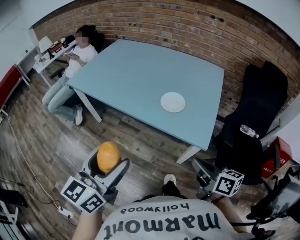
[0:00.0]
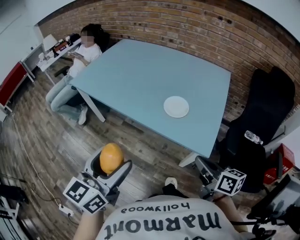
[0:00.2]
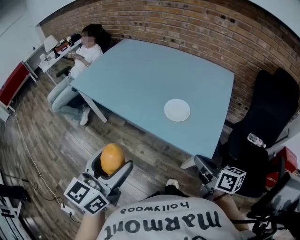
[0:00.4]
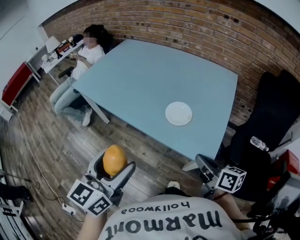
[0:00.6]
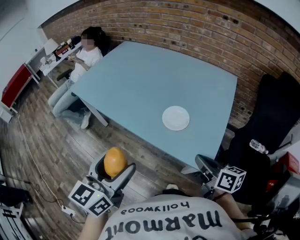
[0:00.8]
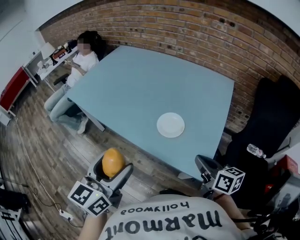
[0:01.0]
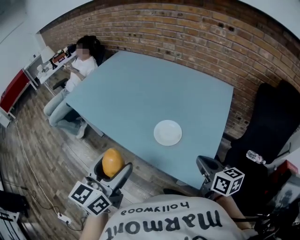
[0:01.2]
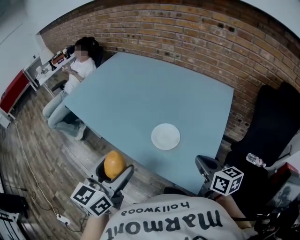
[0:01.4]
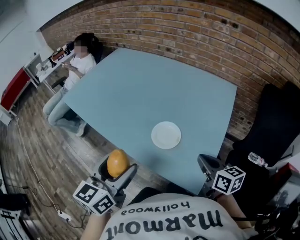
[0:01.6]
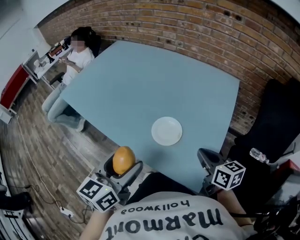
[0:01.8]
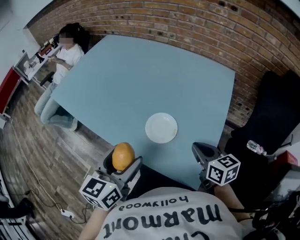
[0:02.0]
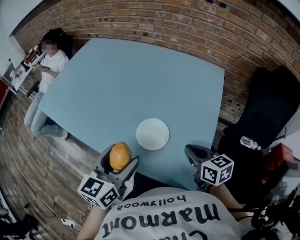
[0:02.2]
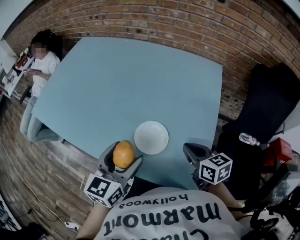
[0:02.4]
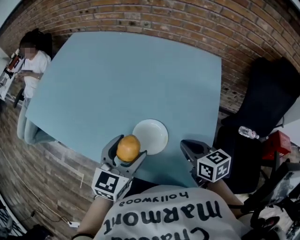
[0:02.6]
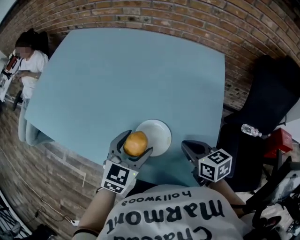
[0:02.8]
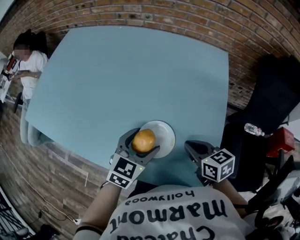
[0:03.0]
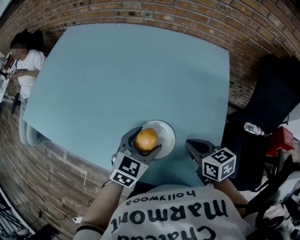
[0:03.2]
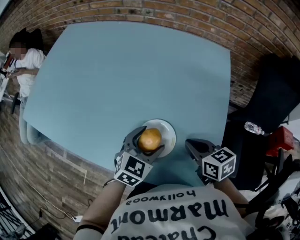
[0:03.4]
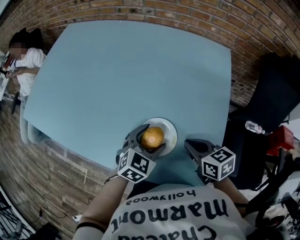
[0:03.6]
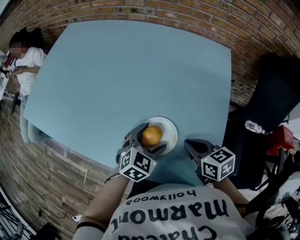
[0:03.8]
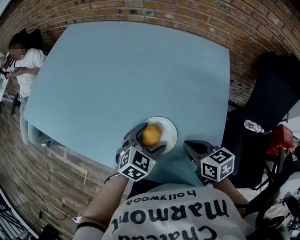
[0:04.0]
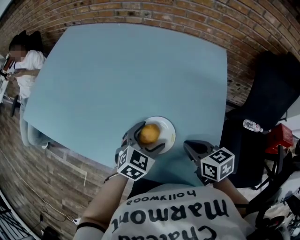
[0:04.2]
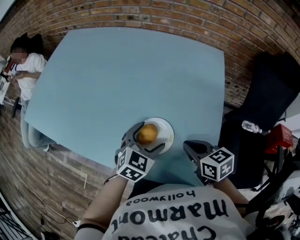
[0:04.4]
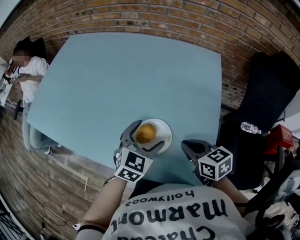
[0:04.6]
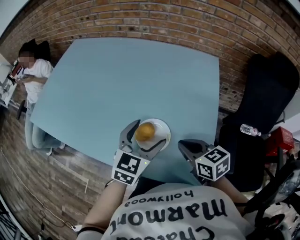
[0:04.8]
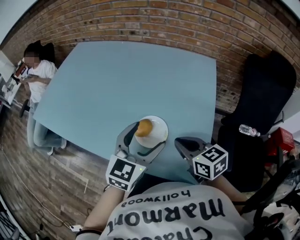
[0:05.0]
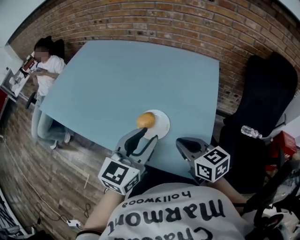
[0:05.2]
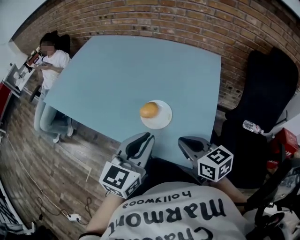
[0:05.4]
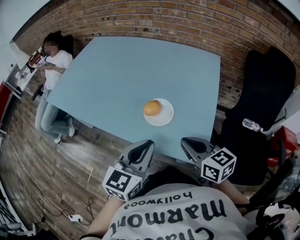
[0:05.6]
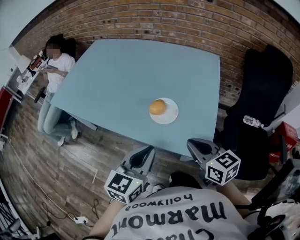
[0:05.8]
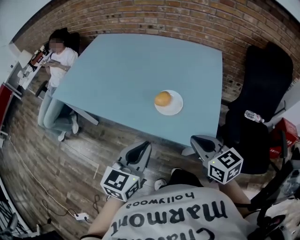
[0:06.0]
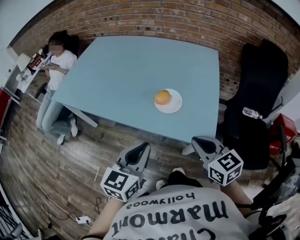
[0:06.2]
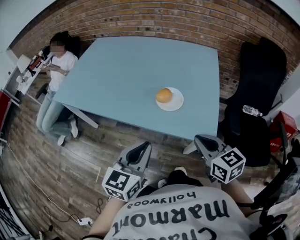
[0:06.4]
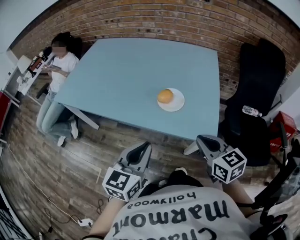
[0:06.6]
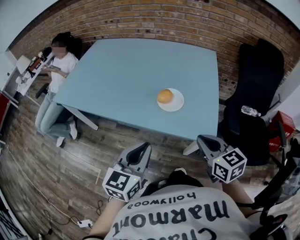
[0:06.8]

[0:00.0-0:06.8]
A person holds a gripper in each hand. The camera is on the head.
0:00.0 to 0:01.4: The two grippers go some 25 cm forward and to the right.
0:01.4 to 0:02.8: The right gripper shifts roughly 15 cm forward and downward; the left gripper moves forward, downward and to the right, approximately 25 cm, and swivels some 40 degrees.
0:02.8 to 0:04.0: The left gripper travels downward by approximately 10 cm.
0:04.0 to 0:05.4: The right gripper heads backward and upward, covering some 15 cm; the left gripper travels upward and backward by some 25 cm, swivels about 40 degrees, and closes up.
0:05.4 to 0:06.8: The left gripper moves backward and to the left, roughly 20 cm. Meanwhile the right gripper heads backward, covering approximately 15 cm.

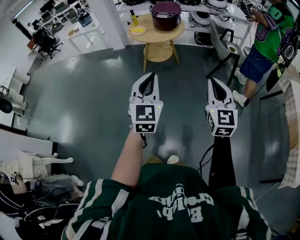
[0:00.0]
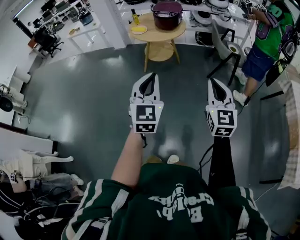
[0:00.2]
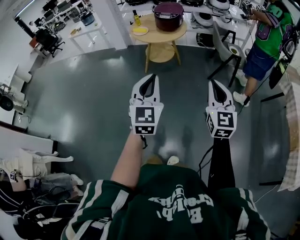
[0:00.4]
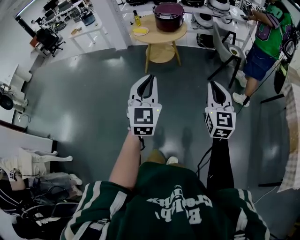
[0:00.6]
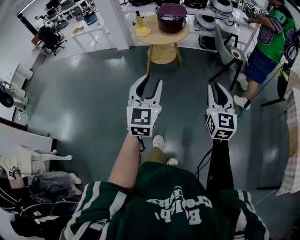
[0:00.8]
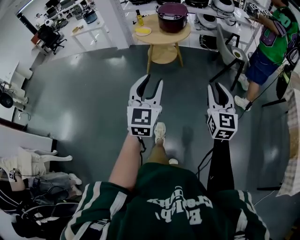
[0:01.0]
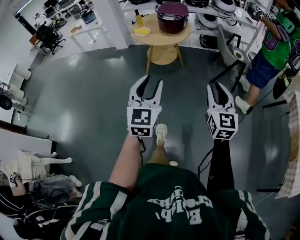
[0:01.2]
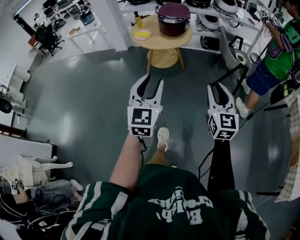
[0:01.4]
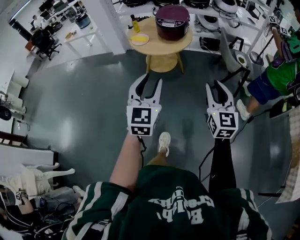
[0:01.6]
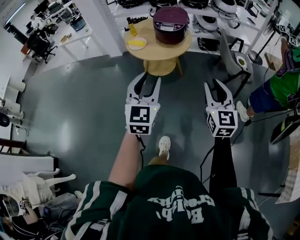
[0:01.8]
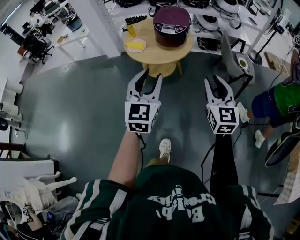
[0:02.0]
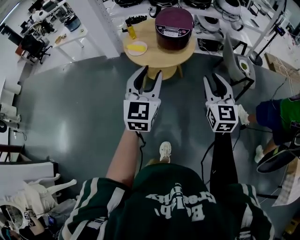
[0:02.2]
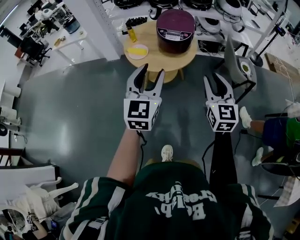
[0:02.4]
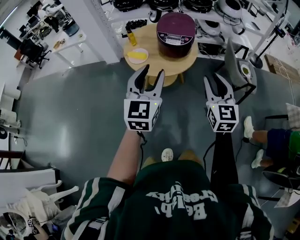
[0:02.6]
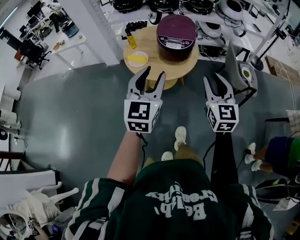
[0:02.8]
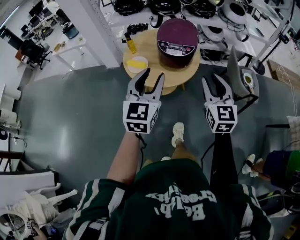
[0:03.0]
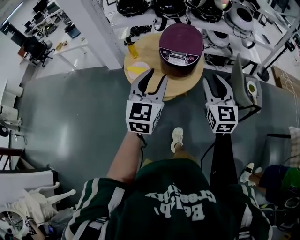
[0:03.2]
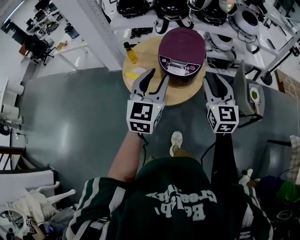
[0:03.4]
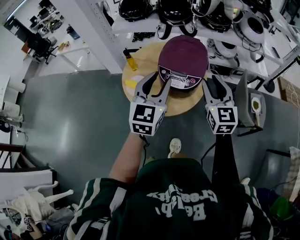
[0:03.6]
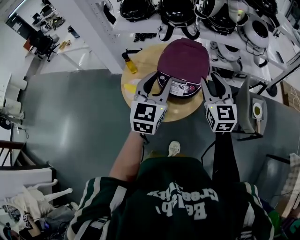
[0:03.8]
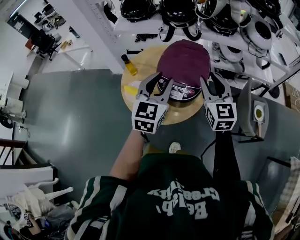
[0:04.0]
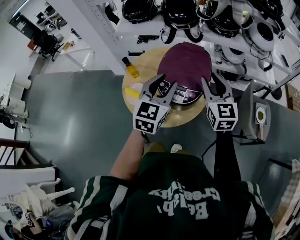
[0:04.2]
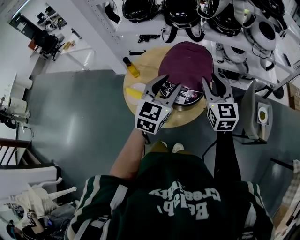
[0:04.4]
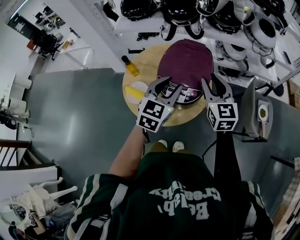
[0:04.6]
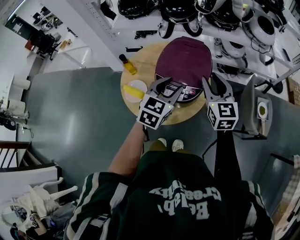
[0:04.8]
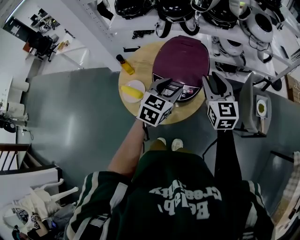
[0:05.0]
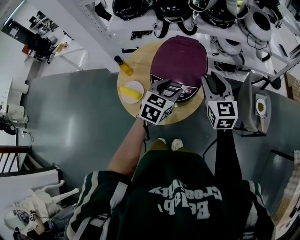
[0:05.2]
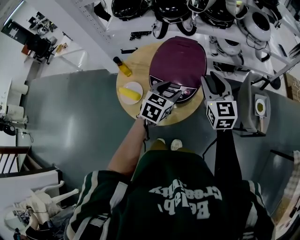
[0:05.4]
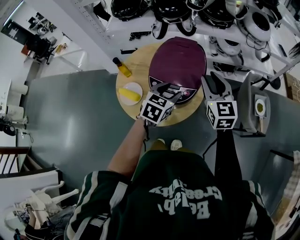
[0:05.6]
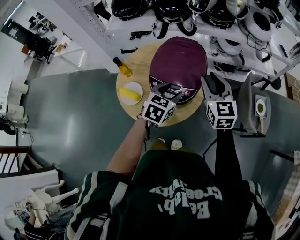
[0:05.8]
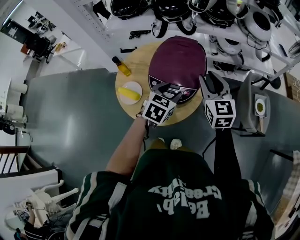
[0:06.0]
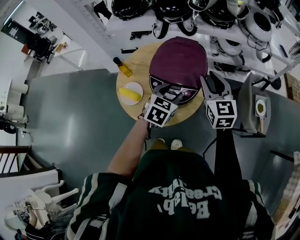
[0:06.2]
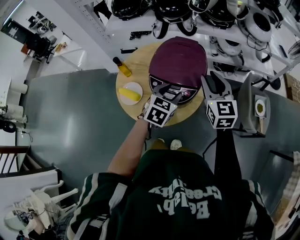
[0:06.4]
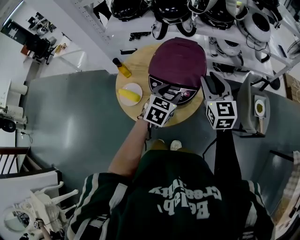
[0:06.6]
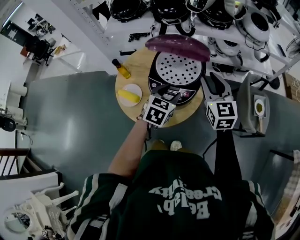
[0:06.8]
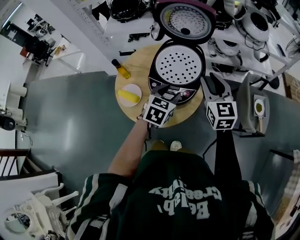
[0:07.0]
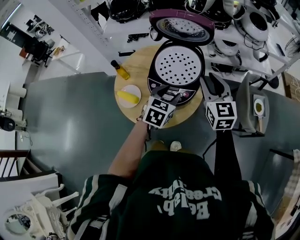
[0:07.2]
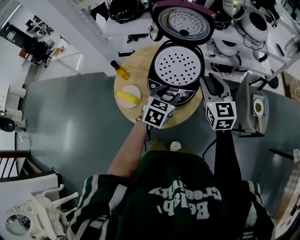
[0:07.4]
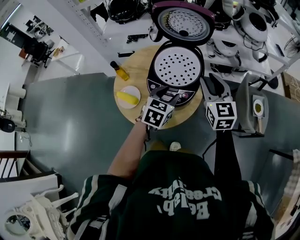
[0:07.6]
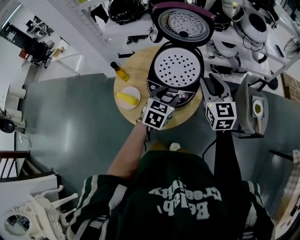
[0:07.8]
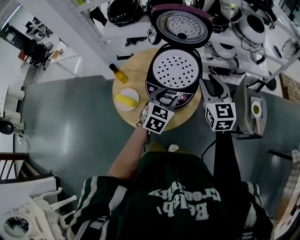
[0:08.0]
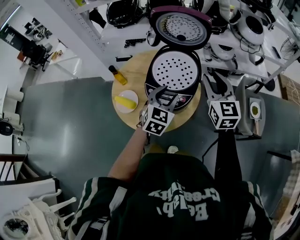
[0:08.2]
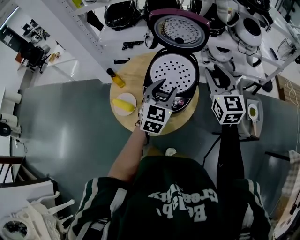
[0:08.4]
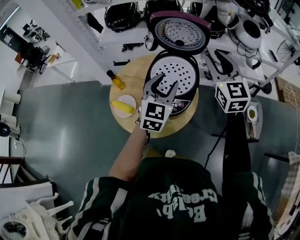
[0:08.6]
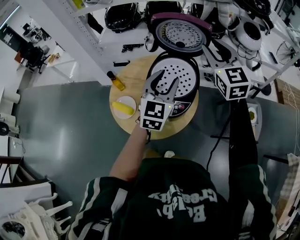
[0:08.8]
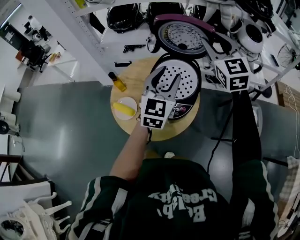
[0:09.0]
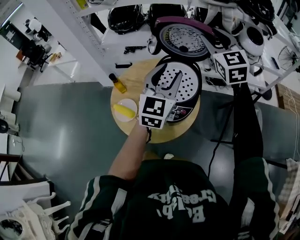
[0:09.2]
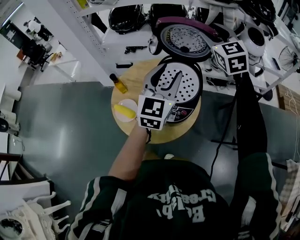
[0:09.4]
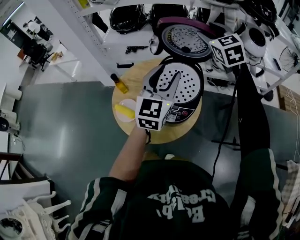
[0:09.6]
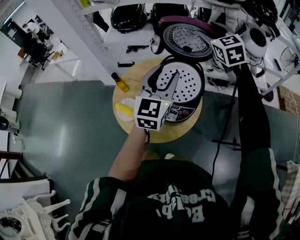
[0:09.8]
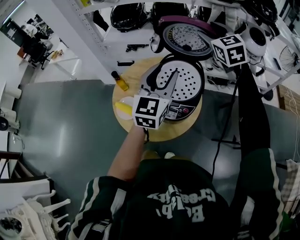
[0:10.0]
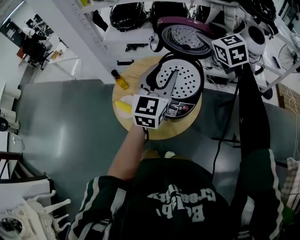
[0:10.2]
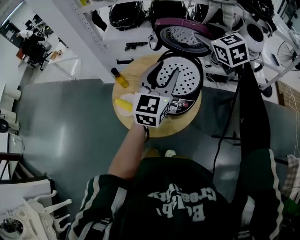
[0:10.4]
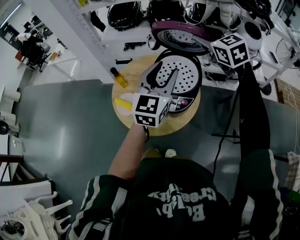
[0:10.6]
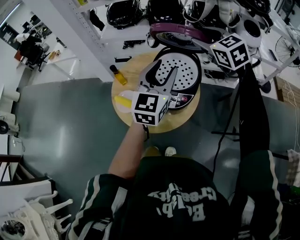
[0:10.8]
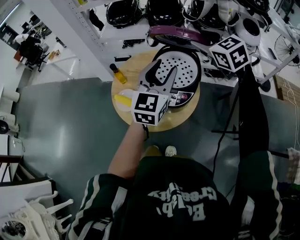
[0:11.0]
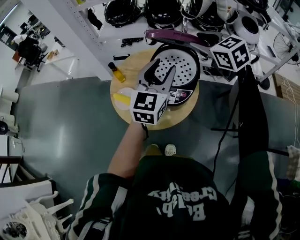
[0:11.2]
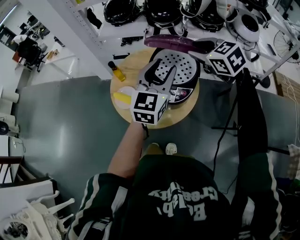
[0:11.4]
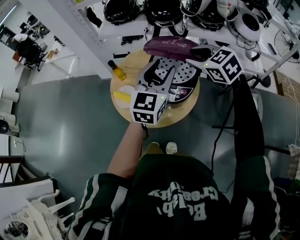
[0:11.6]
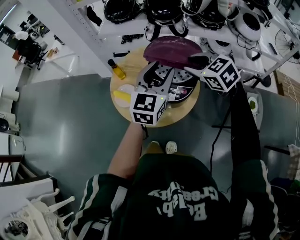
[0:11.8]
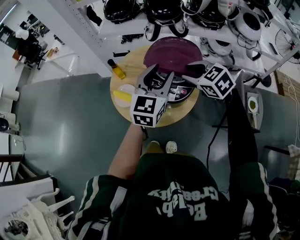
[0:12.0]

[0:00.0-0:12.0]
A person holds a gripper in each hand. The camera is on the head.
0:00.0 to 0:01.6: The grippers both shift forward by about 20 cm. The left gripper opens its fingers, while the right gripper opens its fingers.
0:01.6 to 0:03.0: The grippers both shift forward by about 30 cm.
0:03.0 to 0:04.4: The grippers both shift forward by approximately 30 cm.
0:04.4 to 0:06.0: The left gripper moves downward, approximately 10 cm, and swivels roughly 30 degrees.
0:06.0 to 0:07.6: Both grippers stay about where they are.
0:07.6 to 0:09.0: Both grippers move upward and forward, some 20 cm. The right gripper changes its angle by about 20 degrees; the left gripper tilts its fingers roughly 30 degrees upward.
0:09.0 to 0:10.4: The right gripper opens up.
0:10.4 to 0:12.0: The left gripper shifts by roughly 5 cm. The right gripper moves downward, backward and to the left, some 25 cm, turns by about 30 degrees, and closes up.

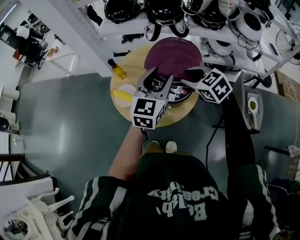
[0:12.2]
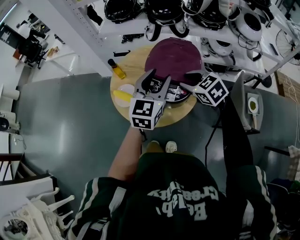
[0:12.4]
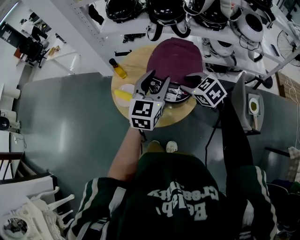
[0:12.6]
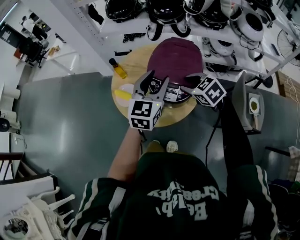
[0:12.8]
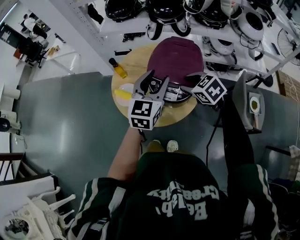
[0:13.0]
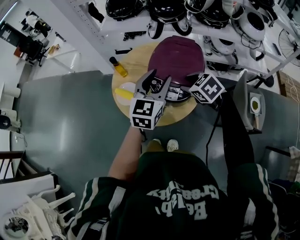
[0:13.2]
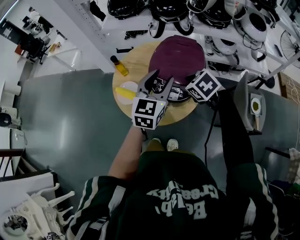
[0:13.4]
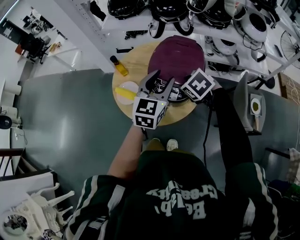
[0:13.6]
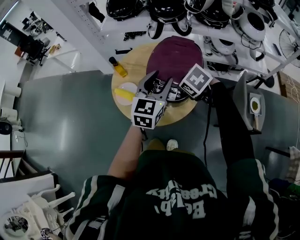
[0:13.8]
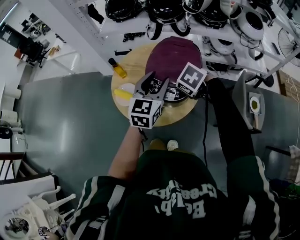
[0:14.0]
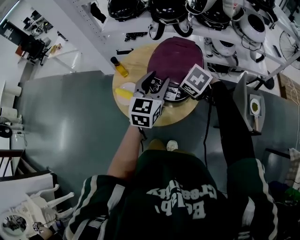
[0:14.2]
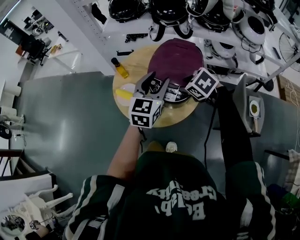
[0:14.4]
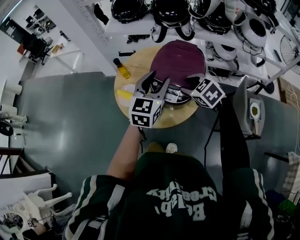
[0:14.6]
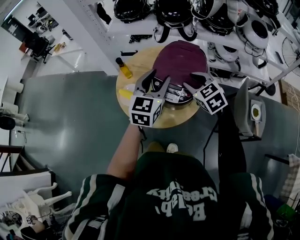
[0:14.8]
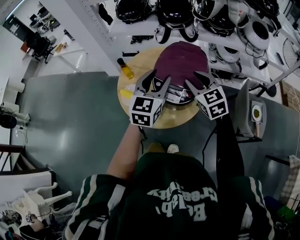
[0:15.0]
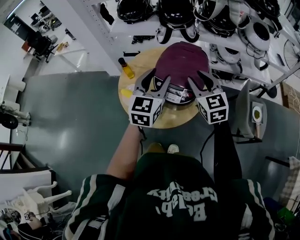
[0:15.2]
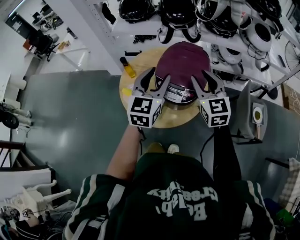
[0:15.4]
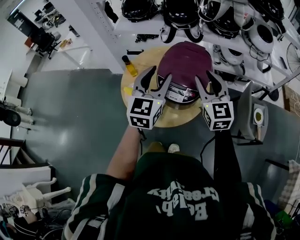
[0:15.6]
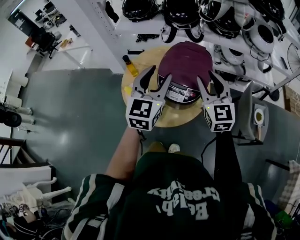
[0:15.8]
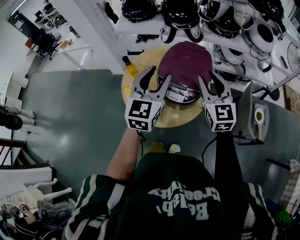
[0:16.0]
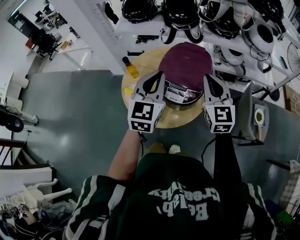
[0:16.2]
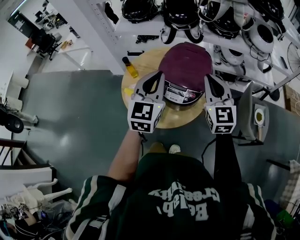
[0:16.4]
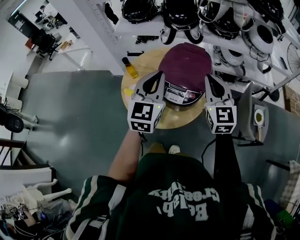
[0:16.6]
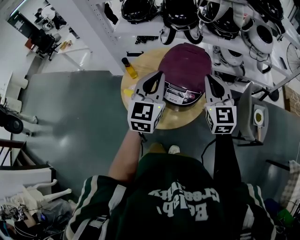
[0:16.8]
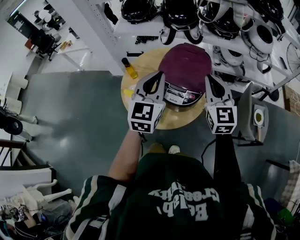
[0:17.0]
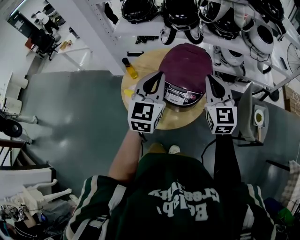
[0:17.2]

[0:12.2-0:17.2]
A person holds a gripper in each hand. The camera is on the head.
0:12.2 to 0:13.8: The right gripper is displaced downward by some 5 cm, and swivels some 20 degrees.
0:13.8 to 0:15.6: The left gripper heads upward and to the left, covering about 10 cm. The right gripper goes approximately 15 cm upward, and tips its fingers upward by roughly 60 degrees.
0:15.6 to 0:17.2: The left gripper closes up. The right gripper closes.
